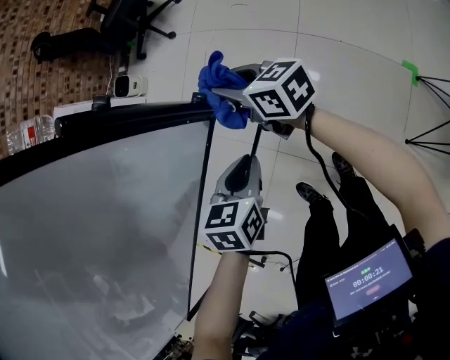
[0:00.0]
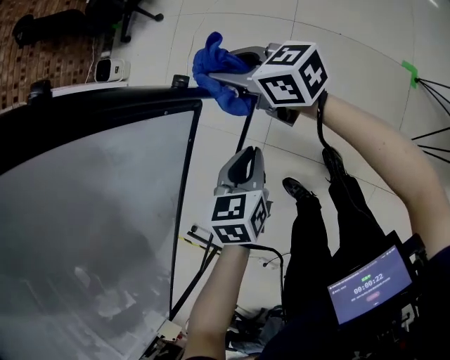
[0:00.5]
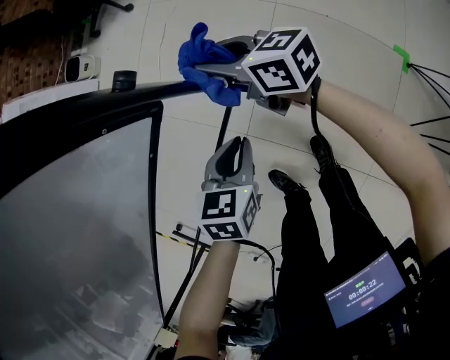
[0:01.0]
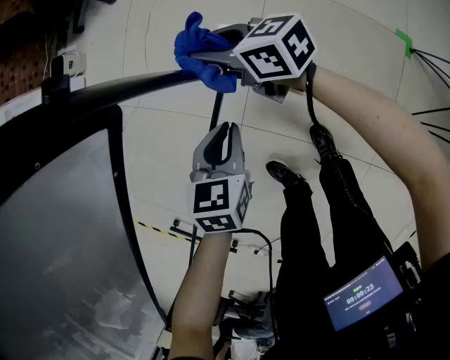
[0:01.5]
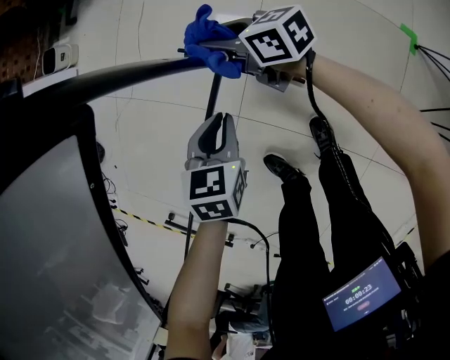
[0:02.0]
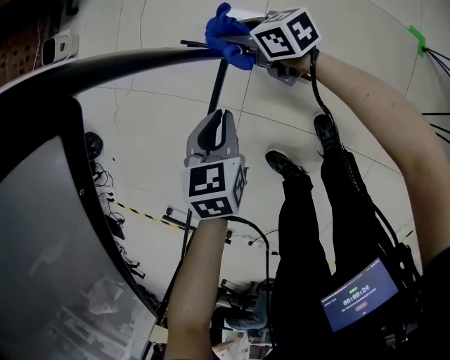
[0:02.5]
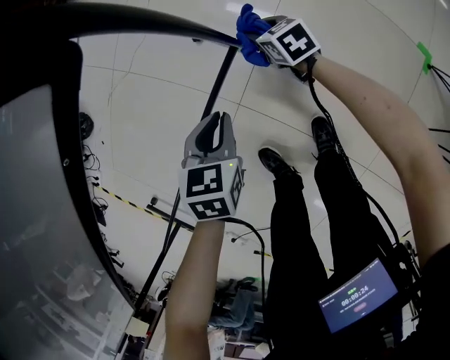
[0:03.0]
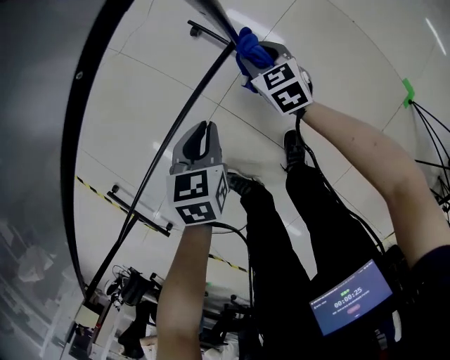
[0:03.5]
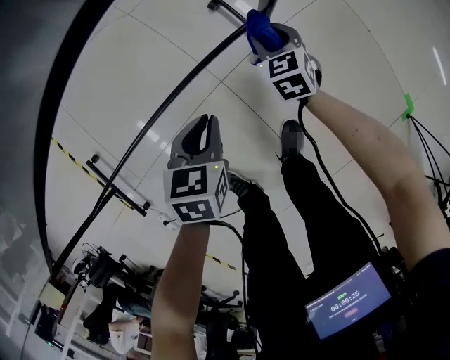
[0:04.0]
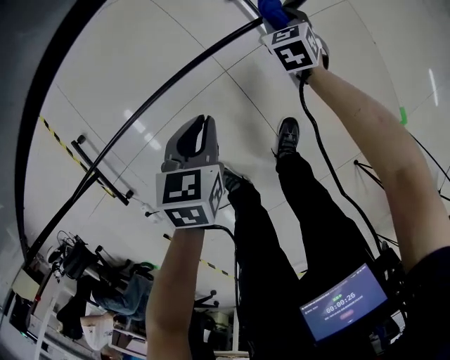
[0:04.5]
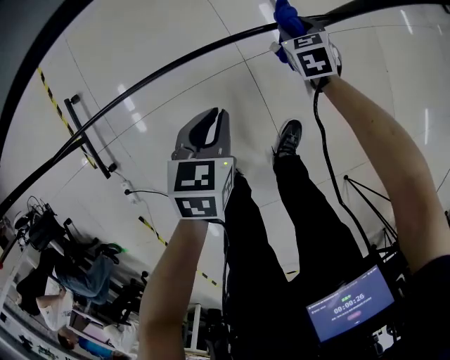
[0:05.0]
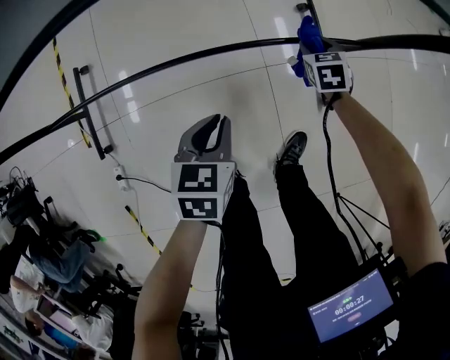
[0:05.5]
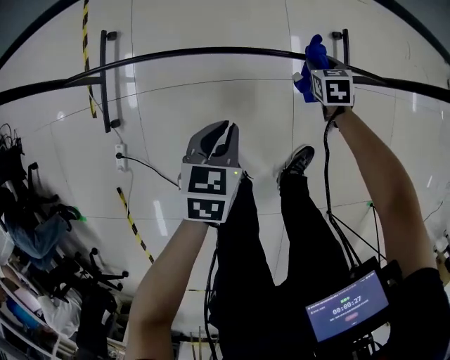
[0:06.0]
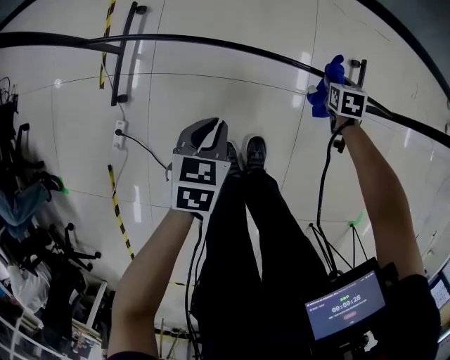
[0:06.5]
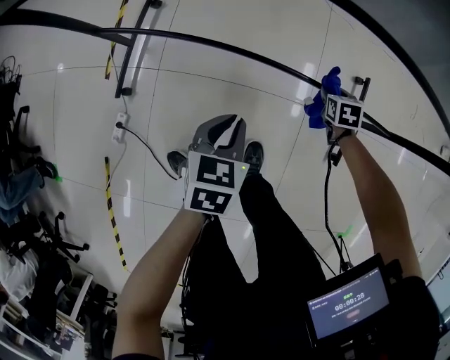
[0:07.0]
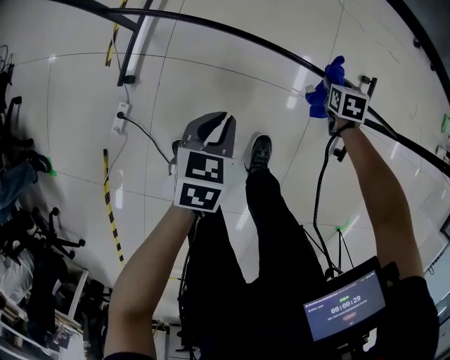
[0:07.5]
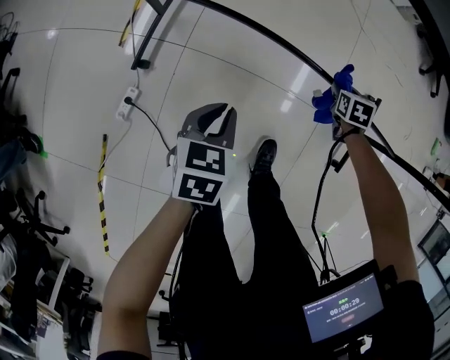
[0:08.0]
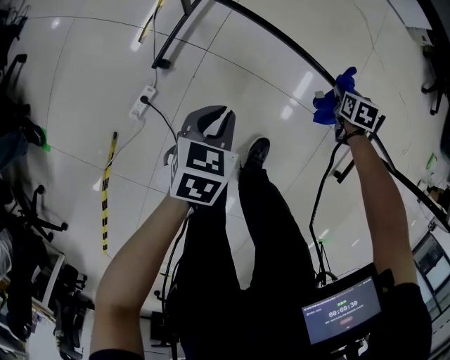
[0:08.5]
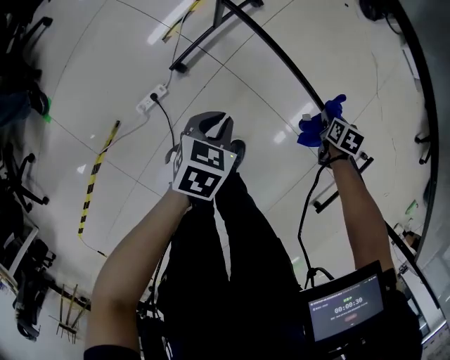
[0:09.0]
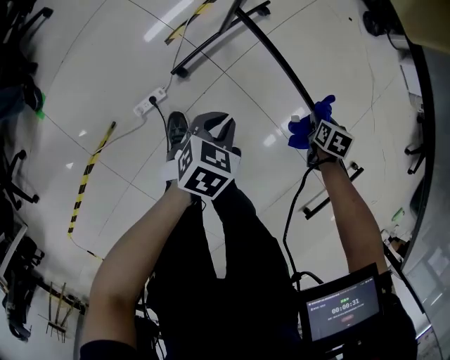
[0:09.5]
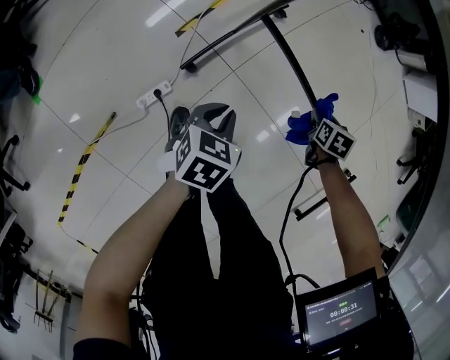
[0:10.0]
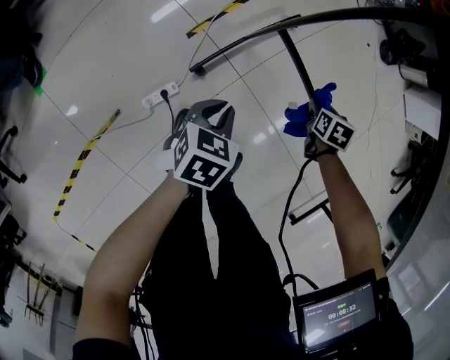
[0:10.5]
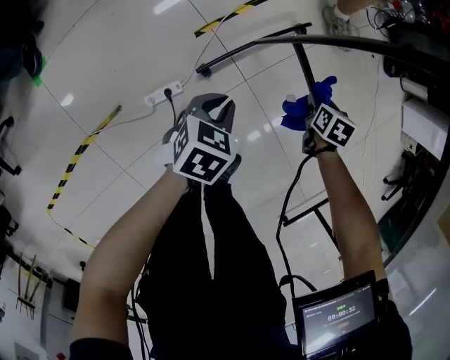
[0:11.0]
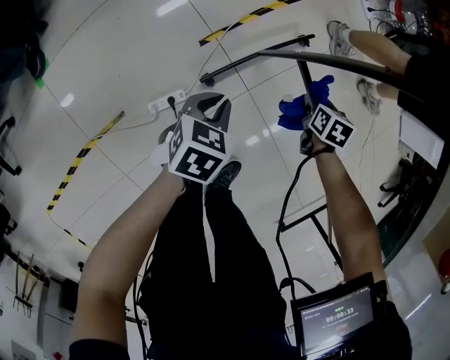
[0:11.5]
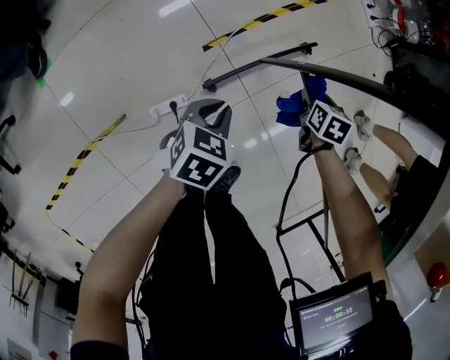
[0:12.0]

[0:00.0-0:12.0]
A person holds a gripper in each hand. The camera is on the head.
0:00.0 to 0:02.0: Both grippers move downward, roughly 25 cm.
0:02.0 to 0:04.0: The left gripper travels backward and to the left by approximately 15 cm, and rotates roughly 30 degrees; the right gripper moves downward and backward, about 15 cm, and twists approximately 50 degrees counterclockwise, seen from behind.
0:04.0 to 0:06.0: The left gripper is displaced to the left and backward by roughly 30 cm, and swivels roughly 30 degrees; the right gripper travels to the left by about 25 cm, and turns by some 20 degrees.
0:06.0 to 0:08.0: Both grippers move to the left, some 20 cm.
0:08.0 to 0:10.0: Both grippers move to the left, approximately 25 cm.
0:10.0 to 0:12.0: The right gripper moves to the left, about 25 cm. Meanwhile the left gripper travels to the left by about 15 cm.

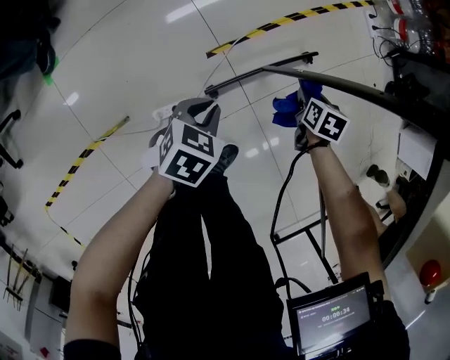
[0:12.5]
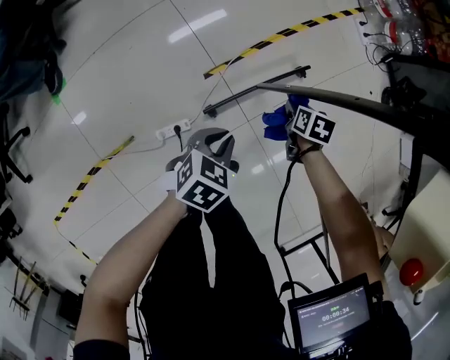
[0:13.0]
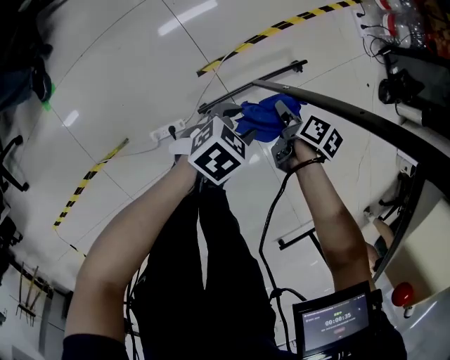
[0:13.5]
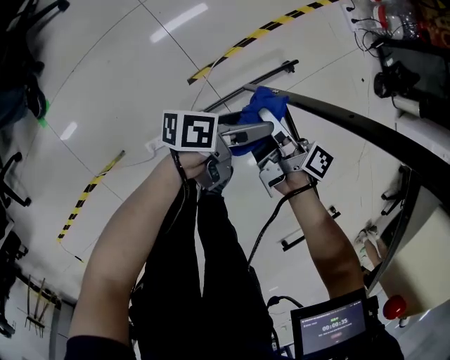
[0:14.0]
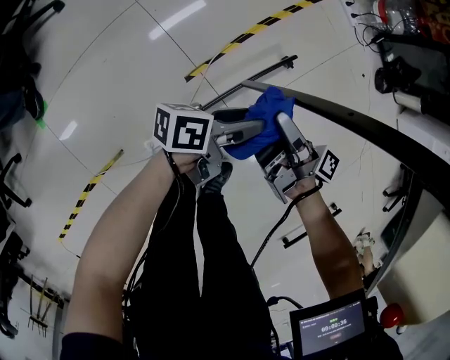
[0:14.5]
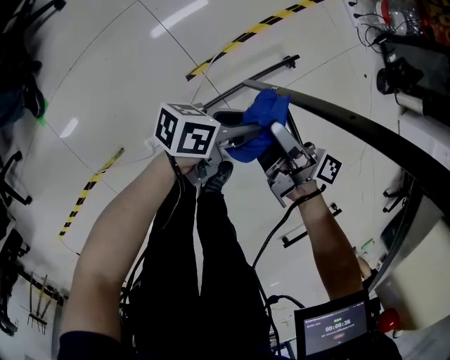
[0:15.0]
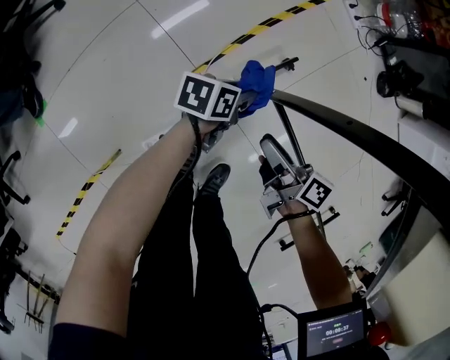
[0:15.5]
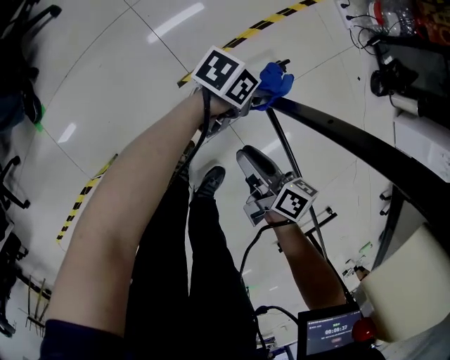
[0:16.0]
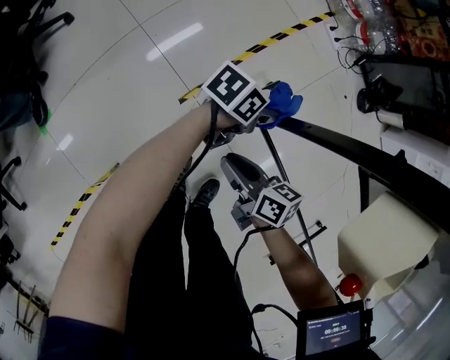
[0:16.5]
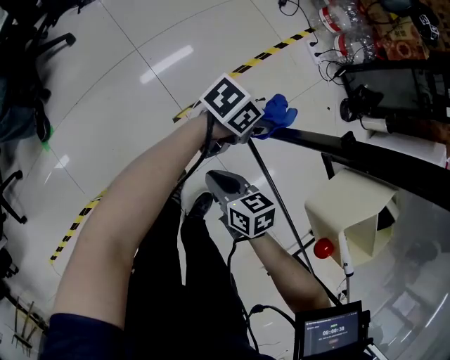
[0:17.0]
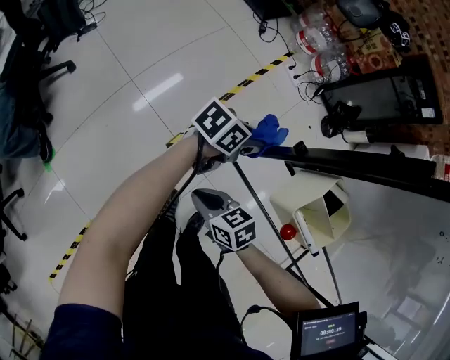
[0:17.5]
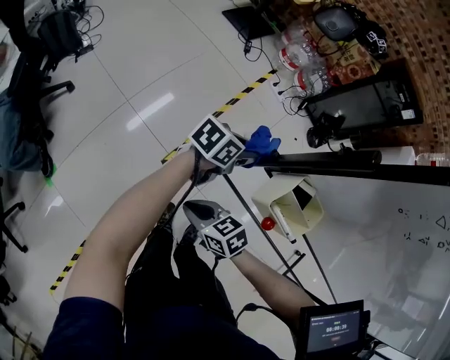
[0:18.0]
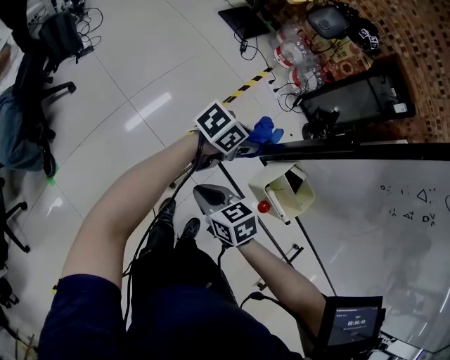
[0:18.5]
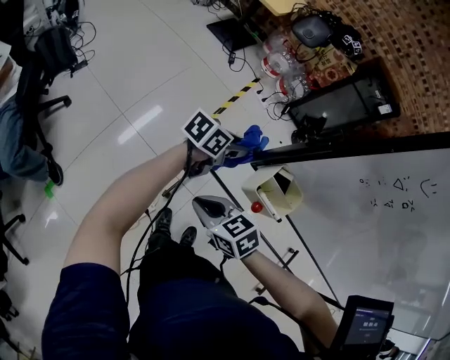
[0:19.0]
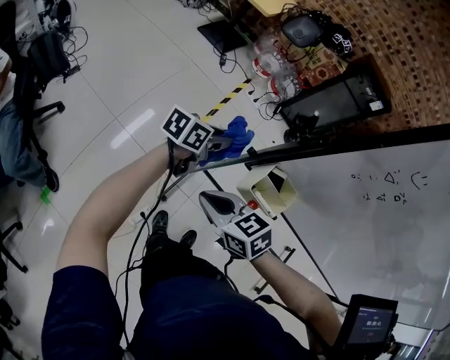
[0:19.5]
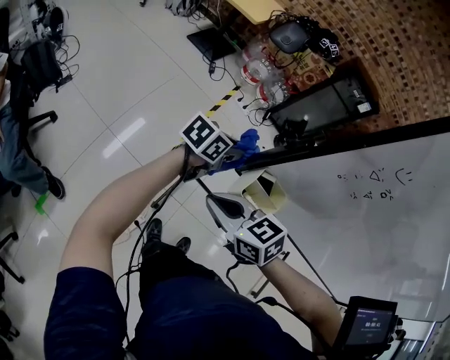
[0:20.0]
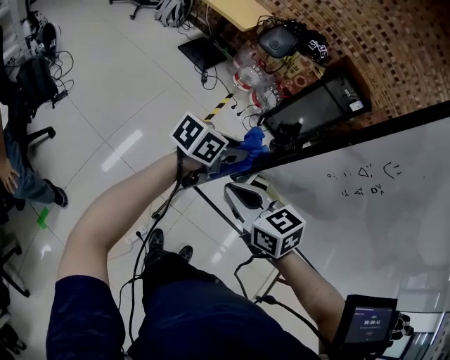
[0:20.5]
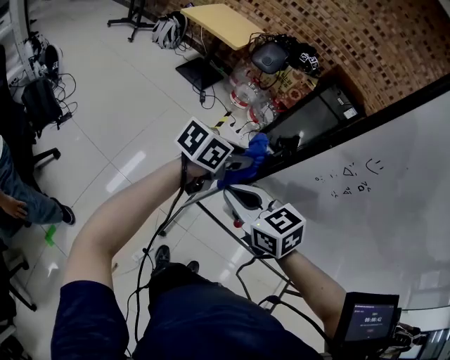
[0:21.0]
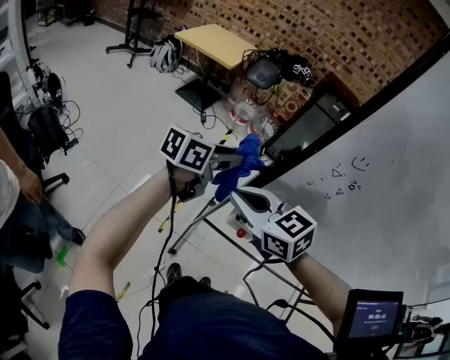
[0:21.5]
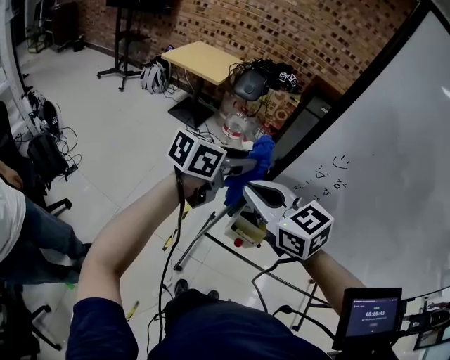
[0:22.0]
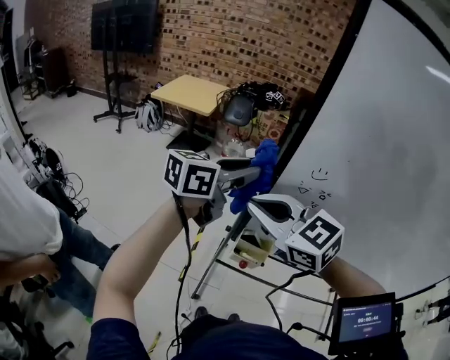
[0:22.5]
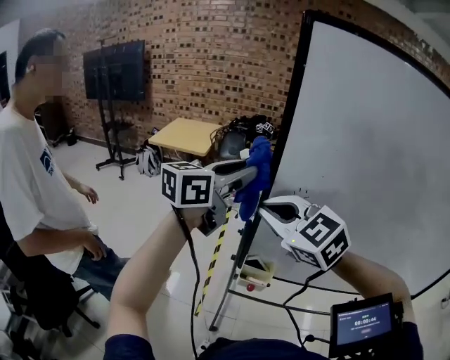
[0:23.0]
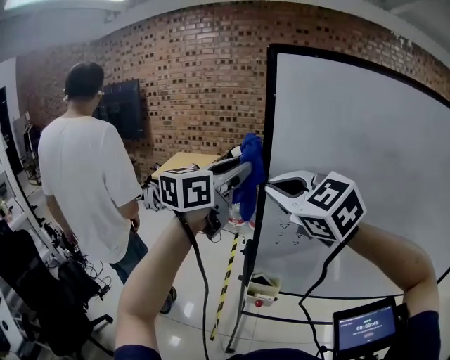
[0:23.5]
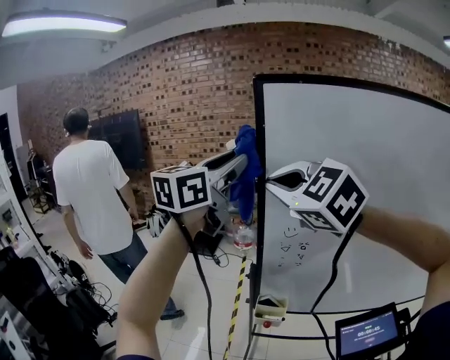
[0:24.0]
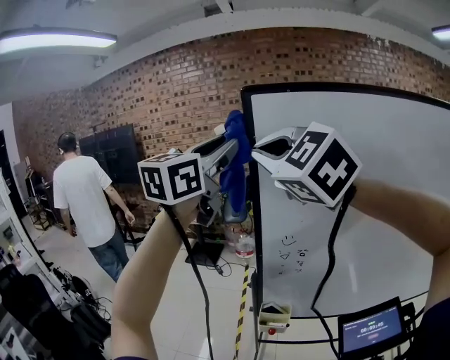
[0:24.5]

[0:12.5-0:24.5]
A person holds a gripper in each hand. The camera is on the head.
0:12.5 to 0:14.5: The right gripper goes approximately 15 cm upward and to the left, and points its fingers roughly 60 degrees further upward; the left gripper goes some 15 cm forward and to the right, angles its fingers upward, by approximately 50 degrees, and opens up.
0:14.5 to 0:16.5: The right gripper moves some 10 cm, rolls counterclockwise, seen from behind, by approximately 40 degrees, and closes. The left gripper reaches about 10 cm downward, then returns, and rotates about 30 degrees.
0:16.5 to 0:18.5: The two grippers go approximately 25 cm upward. The left gripper swivels approximately 20 degrees; the right gripper rotates about 30 degrees.
0:18.5 to 0:20.5: The left gripper shifts approximately 15 cm upward, while the right gripper goes about 20 cm upward.
0:20.5 to 0:22.5: Both grippers move upward, roughly 25 cm. The right gripper rotates approximately 30 degrees.
0:22.5 to 0:24.5: Both grippers travel together upward, approximately 30 cm. The right gripper changes its angle by some 40 degrees. The left gripper turns by roughly 40 degrees.

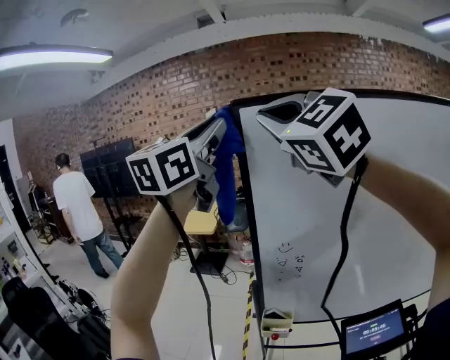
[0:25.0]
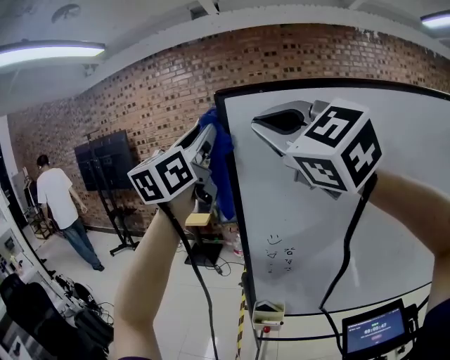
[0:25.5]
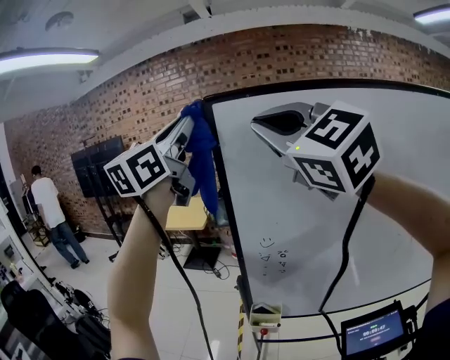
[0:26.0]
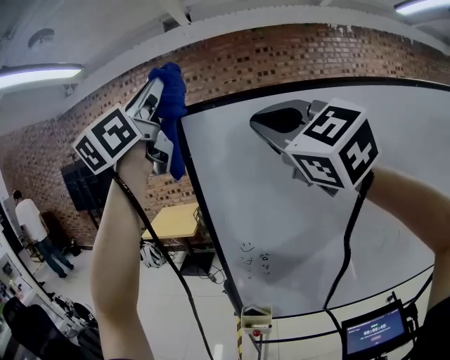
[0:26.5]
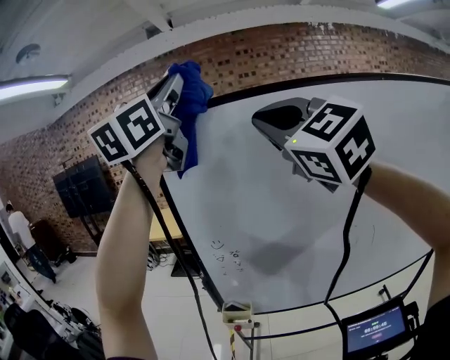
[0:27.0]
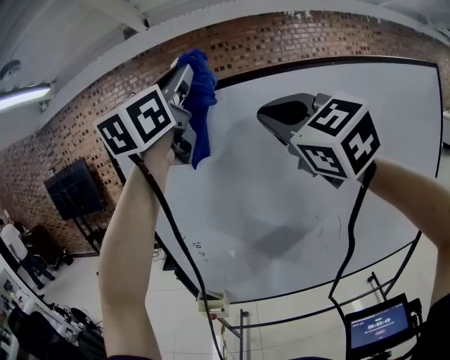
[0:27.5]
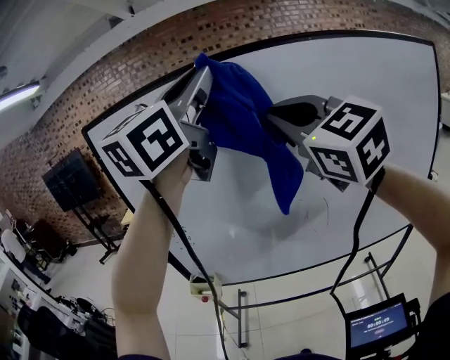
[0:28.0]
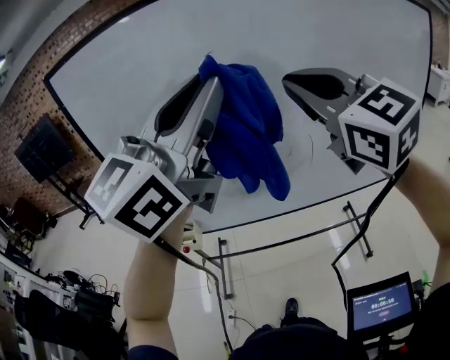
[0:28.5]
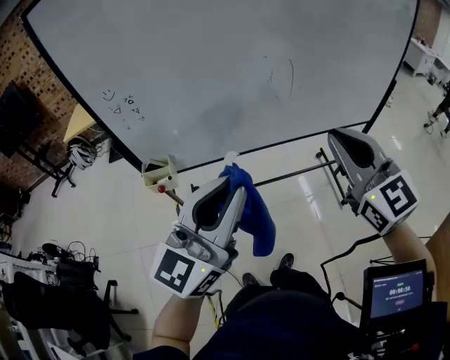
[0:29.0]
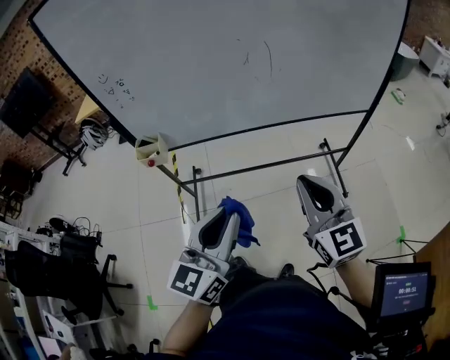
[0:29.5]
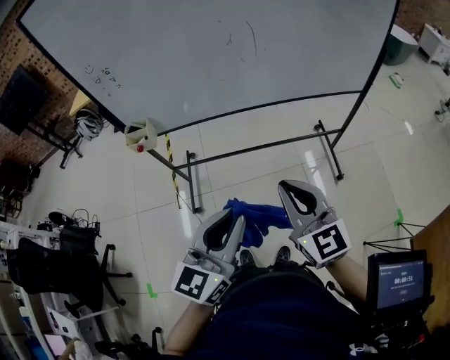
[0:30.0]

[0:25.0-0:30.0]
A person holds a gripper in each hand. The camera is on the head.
0:25.0 to 0:27.5: The grippers both shift to the right by approximately 30 cm.
0:27.5 to 0:30.0: The grippers both shift downward and backward by about 60 cm. The right gripper swivels about 40 degrees, while the left gripper turns by about 40 degrees.
